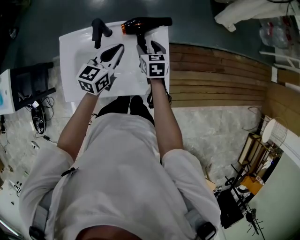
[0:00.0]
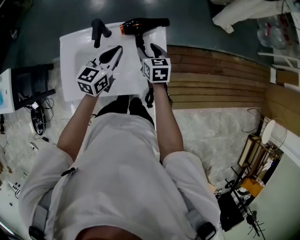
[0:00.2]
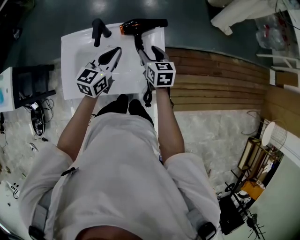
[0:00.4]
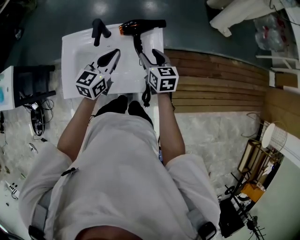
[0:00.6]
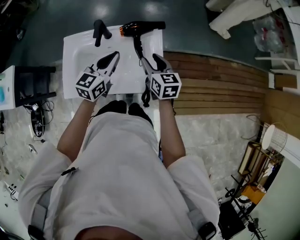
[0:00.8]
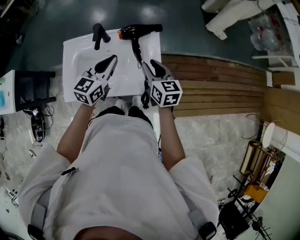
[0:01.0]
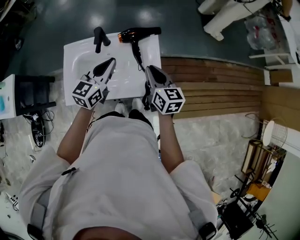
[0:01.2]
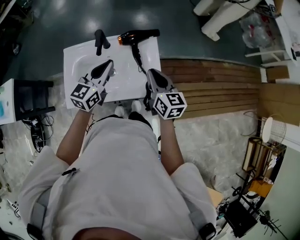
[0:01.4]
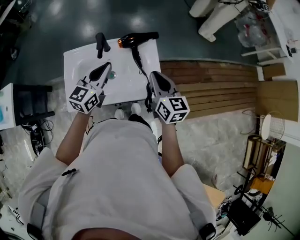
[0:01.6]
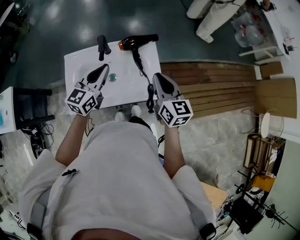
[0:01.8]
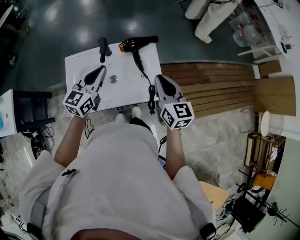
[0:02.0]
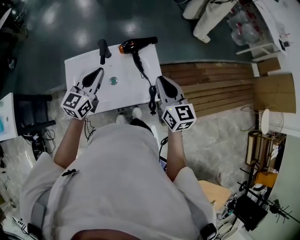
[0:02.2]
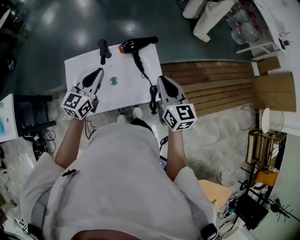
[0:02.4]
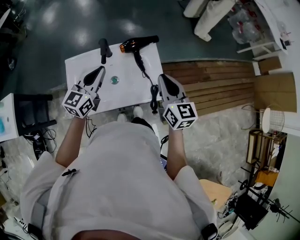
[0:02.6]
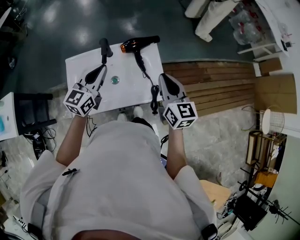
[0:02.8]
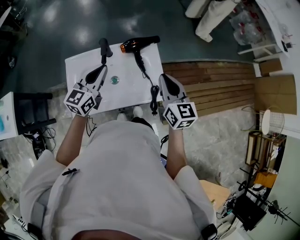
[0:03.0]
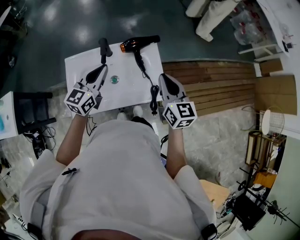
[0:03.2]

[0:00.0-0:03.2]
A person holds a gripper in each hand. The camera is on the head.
0:00.0 to 0:01.6: The left gripper travels upward and backward by approximately 10 cm, while the right gripper travels upward and backward by approximately 25 cm, swivels some 30 degrees, and closes up.
0:01.6 to 0:03.2: The grippers make only small movements.

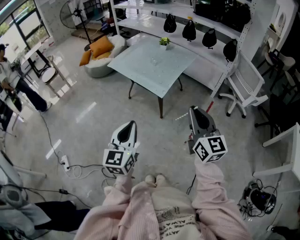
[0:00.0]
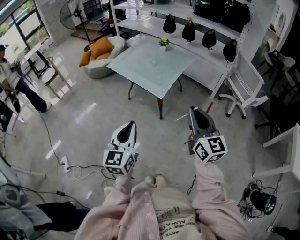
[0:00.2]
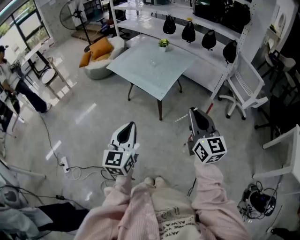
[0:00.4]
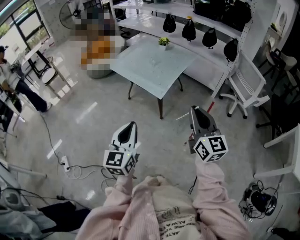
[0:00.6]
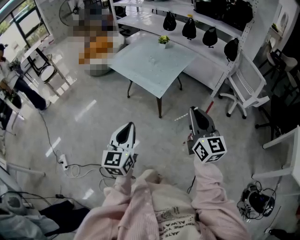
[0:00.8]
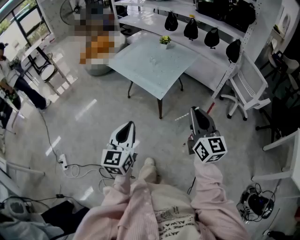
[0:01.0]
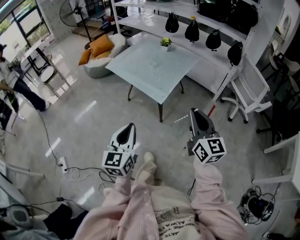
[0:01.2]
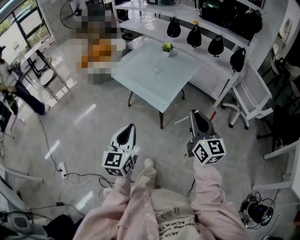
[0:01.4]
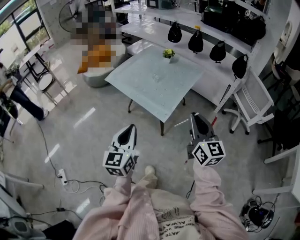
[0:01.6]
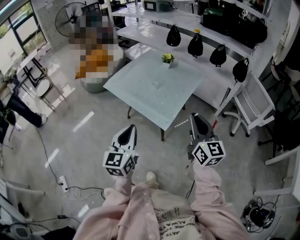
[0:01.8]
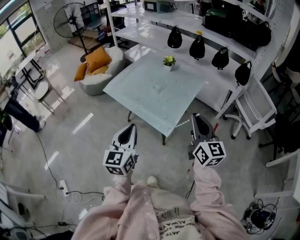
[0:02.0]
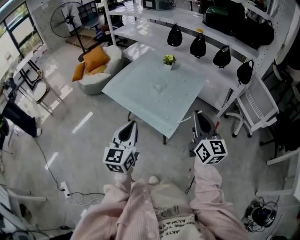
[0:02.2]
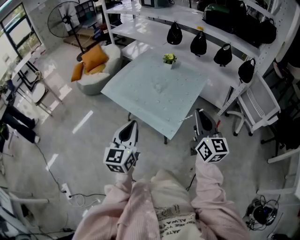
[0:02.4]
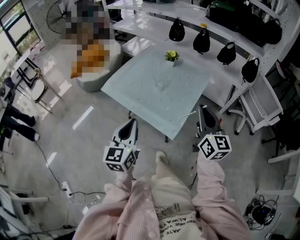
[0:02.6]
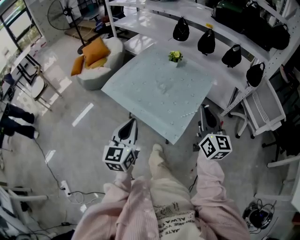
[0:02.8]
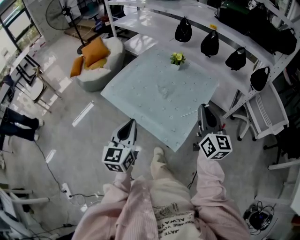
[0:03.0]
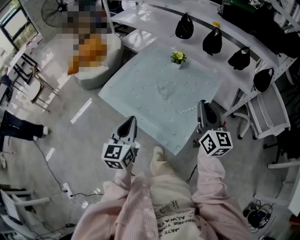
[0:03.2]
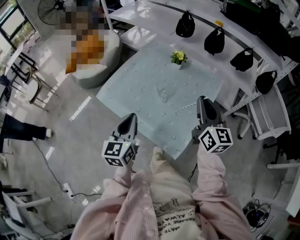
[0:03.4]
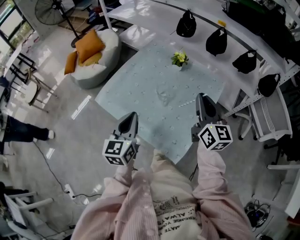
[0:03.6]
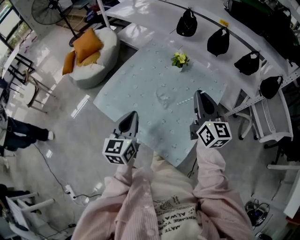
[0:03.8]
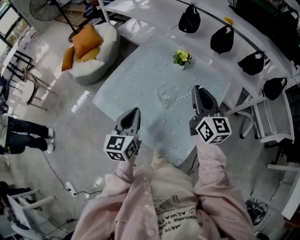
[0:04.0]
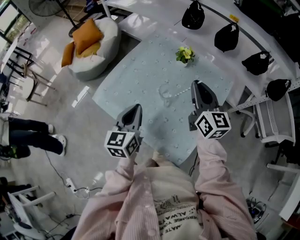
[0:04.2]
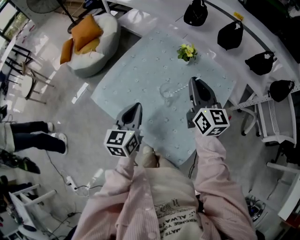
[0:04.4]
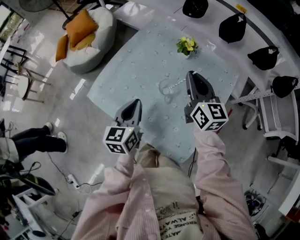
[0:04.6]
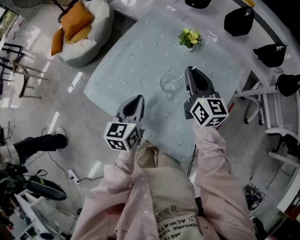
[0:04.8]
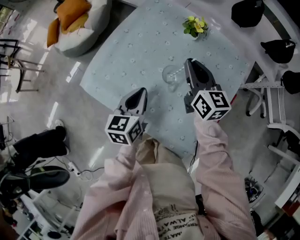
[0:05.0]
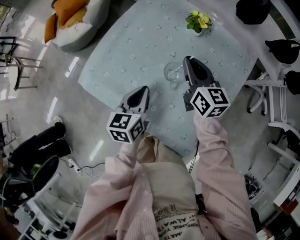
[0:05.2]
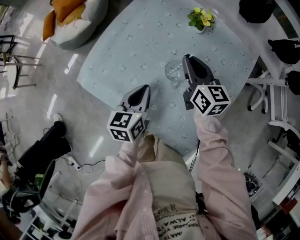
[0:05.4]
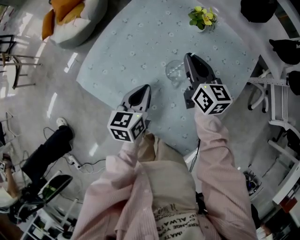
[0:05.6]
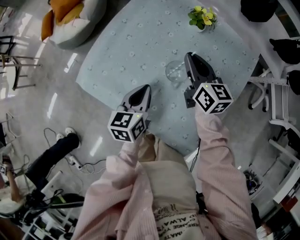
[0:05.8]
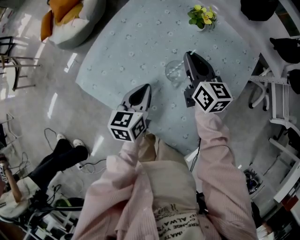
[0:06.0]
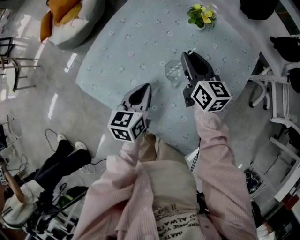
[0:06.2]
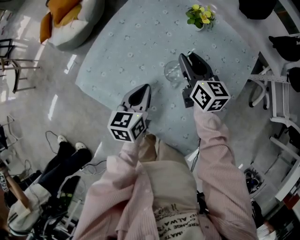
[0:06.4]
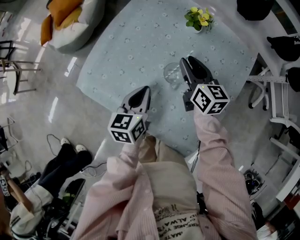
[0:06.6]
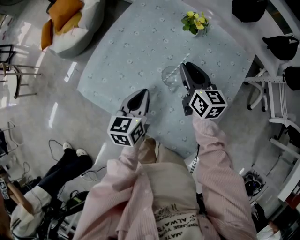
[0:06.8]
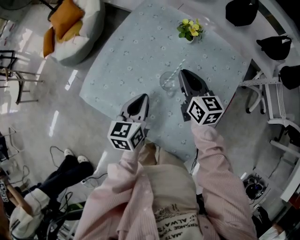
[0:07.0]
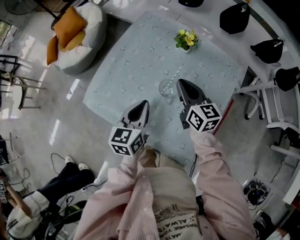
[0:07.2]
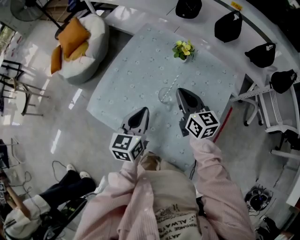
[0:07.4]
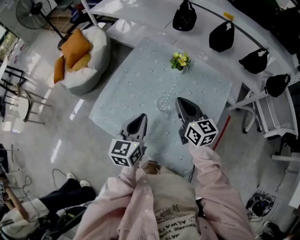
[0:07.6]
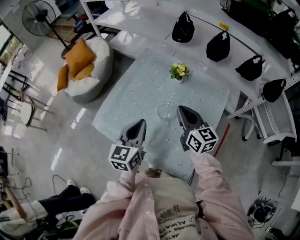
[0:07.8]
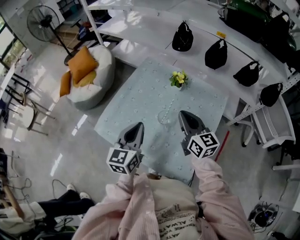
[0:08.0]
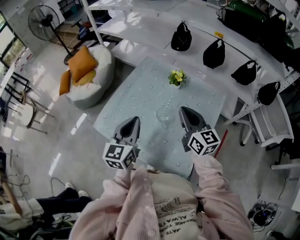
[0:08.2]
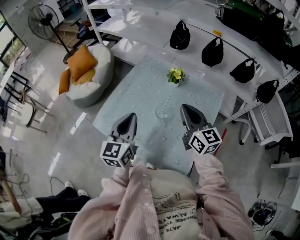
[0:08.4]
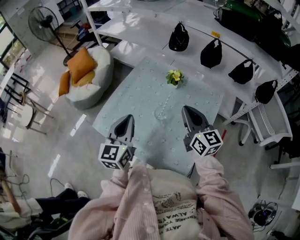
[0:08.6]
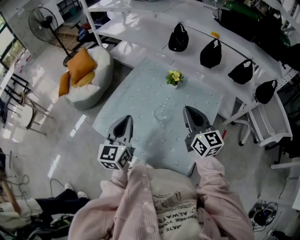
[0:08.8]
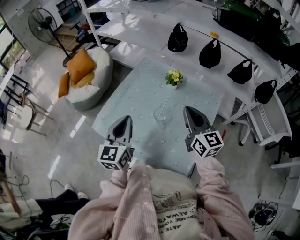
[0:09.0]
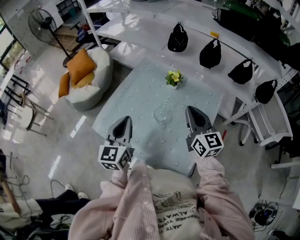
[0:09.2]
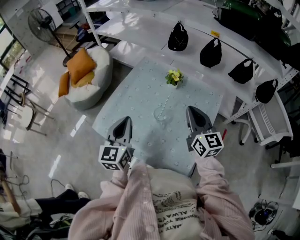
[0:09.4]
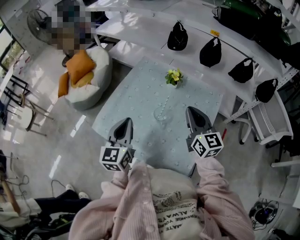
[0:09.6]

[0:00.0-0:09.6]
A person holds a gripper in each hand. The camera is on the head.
0:00.0 to 0:01.6: Both grippers move forward, approximately 20 cm.
0:01.6 to 0:03.2: Both grippers travel together forward, roughly 35 cm.
0:03.2 to 0:04.8: The grippers both shift forward and downward by roughly 30 cm.
0:04.8 to 0:06.4: The grippers both shift downward by about 10 cm. The right gripper opens its fingers.
0:06.4 to 0:08.0: The left gripper travels upward by roughly 20 cm, and turns by some 20 degrees. Meanwhile the right gripper travels upward and backward by roughly 20 cm, and closes up.
0:08.0 to 0:09.6: The right gripper moves some 5 cm.

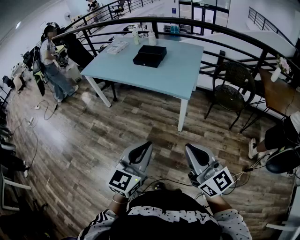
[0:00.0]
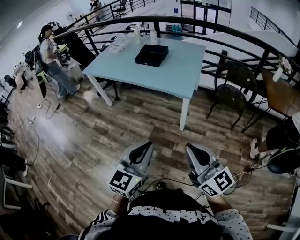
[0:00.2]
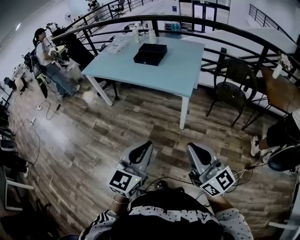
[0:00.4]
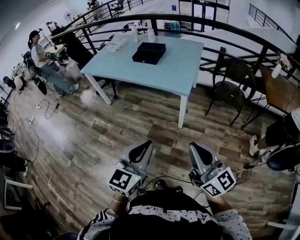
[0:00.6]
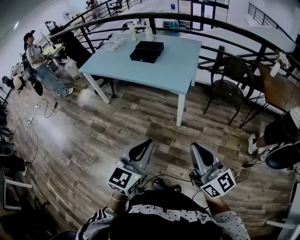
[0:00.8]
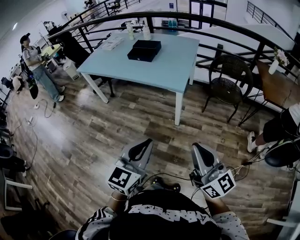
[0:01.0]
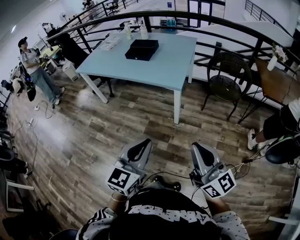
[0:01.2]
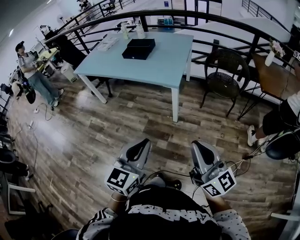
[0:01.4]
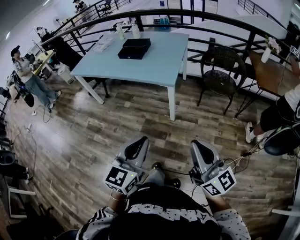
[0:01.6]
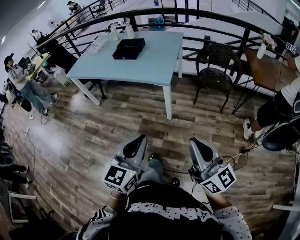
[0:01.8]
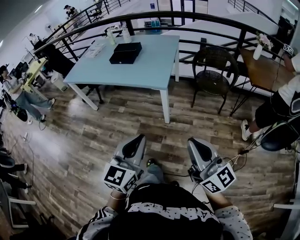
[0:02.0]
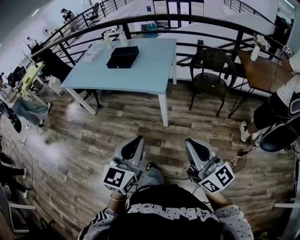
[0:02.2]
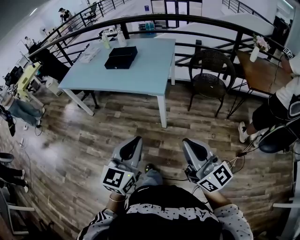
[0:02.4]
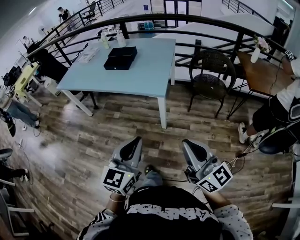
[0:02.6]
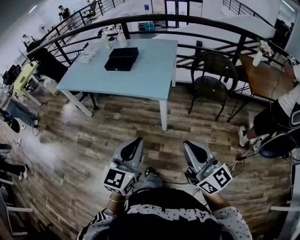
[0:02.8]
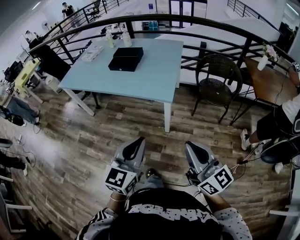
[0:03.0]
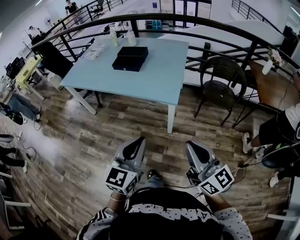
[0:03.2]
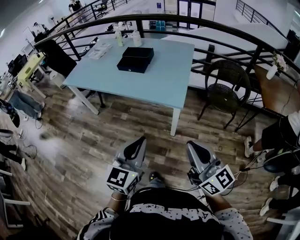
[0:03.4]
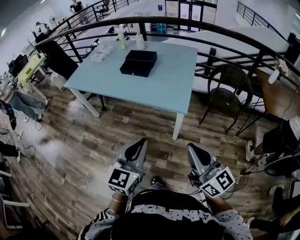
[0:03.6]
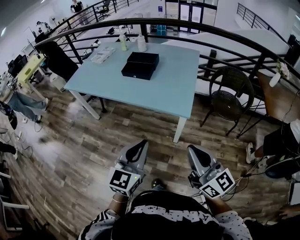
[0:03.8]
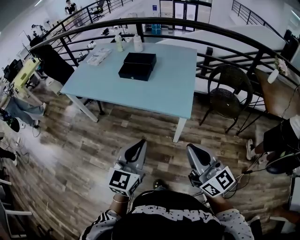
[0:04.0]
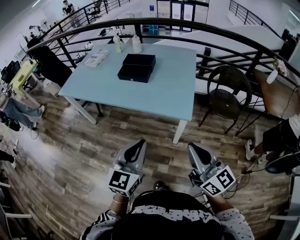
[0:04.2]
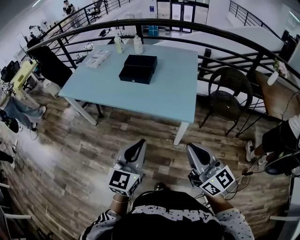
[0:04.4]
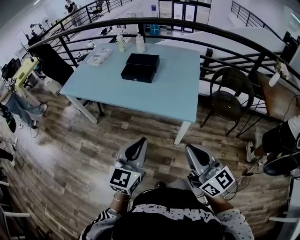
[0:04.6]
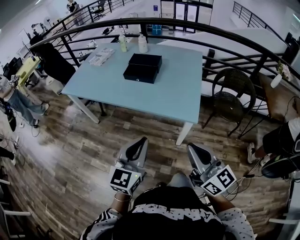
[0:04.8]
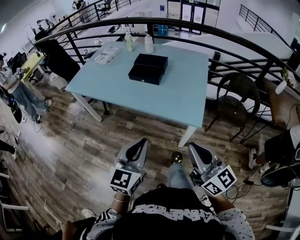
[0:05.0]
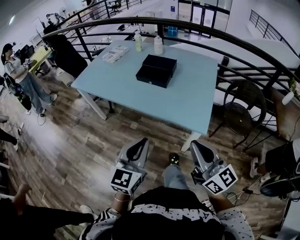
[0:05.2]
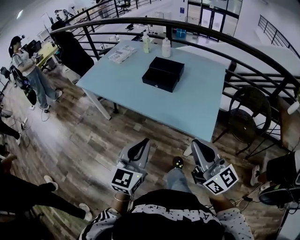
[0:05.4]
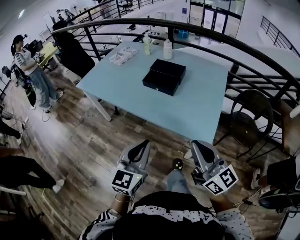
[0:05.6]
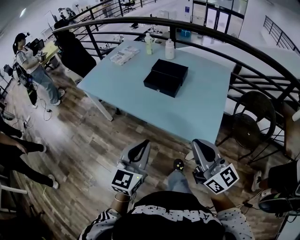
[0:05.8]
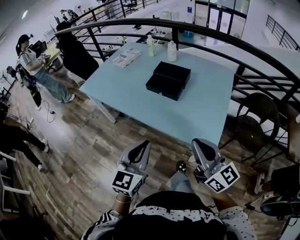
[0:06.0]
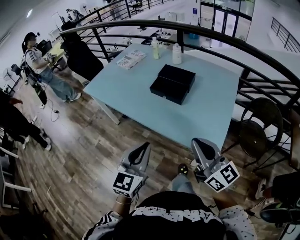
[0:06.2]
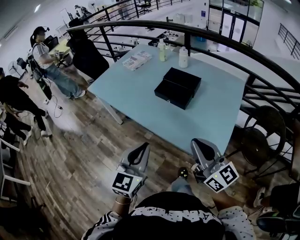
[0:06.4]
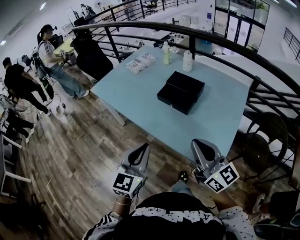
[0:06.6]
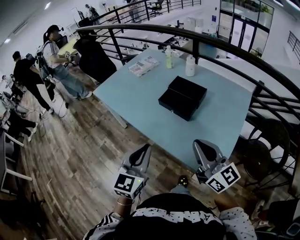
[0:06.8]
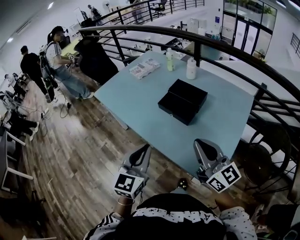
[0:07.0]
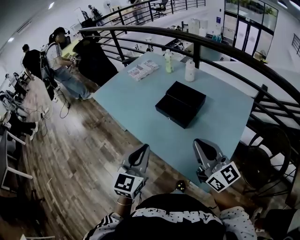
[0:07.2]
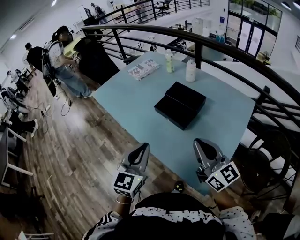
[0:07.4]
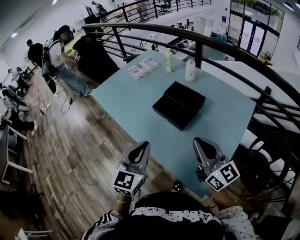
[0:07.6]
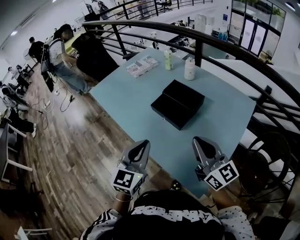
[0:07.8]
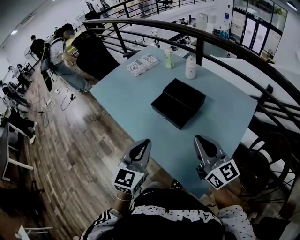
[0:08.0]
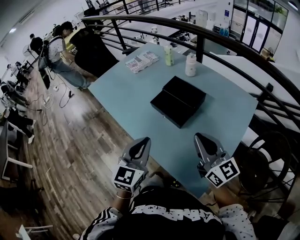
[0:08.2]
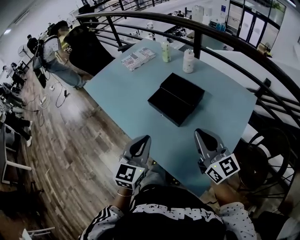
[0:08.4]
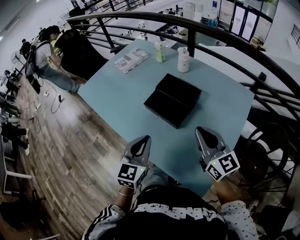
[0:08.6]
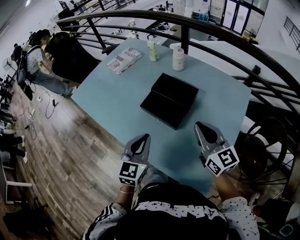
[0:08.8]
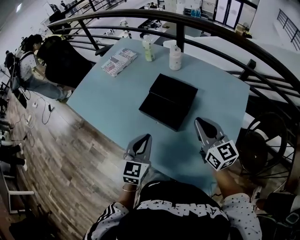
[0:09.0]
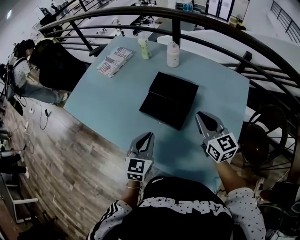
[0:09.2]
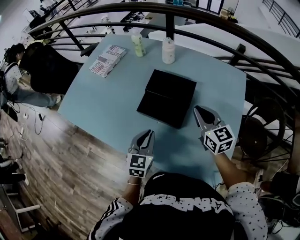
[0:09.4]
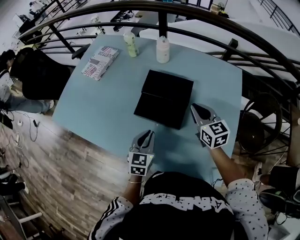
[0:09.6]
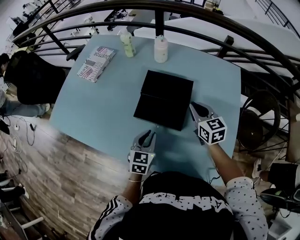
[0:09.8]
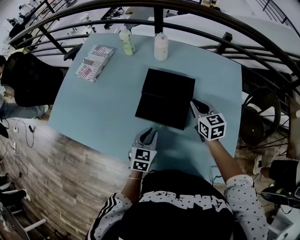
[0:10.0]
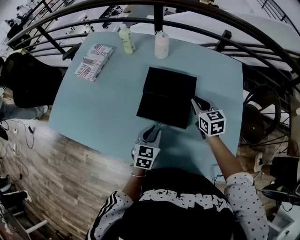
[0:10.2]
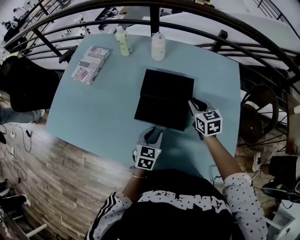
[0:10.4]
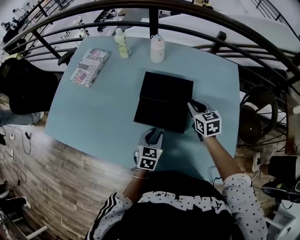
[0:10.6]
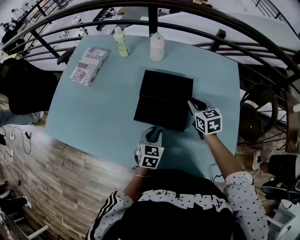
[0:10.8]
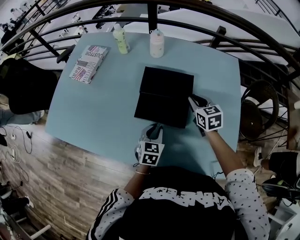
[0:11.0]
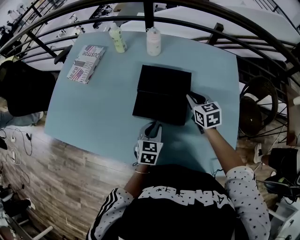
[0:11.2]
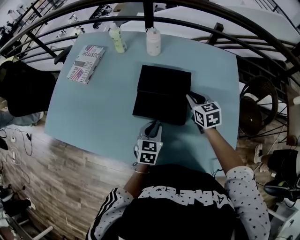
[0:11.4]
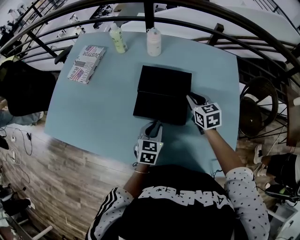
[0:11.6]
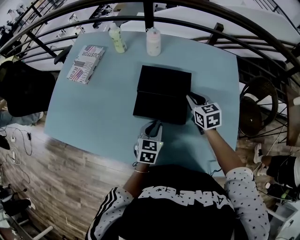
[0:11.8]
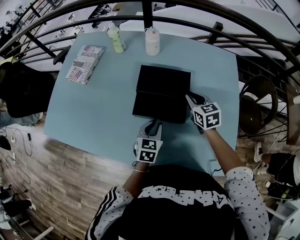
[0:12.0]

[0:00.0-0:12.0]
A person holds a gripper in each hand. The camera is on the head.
0:00.0 to 0:01.6: The right gripper goes some 15 cm to the right and backward. The left gripper goes roughly 10 cm to the right.
0:01.6 to 0:03.0: Both grippers travel together forward, some 15 cm.
0:03.0 to 0:04.4: Both grippers move forward and to the left, some 25 cm.
0:04.4 to 0:06.0: The grippers both shift forward by some 20 cm.
0:06.0 to 0:07.6: The grippers both shift forward and to the right by roughly 25 cm.
0:07.6 to 0:09.0: Both grippers move forward and downward, roughly 20 cm. The right gripper rotates about 20 degrees.
0:09.0 to 0:10.4: The two grippers go approximately 20 cm downward and forward. The right gripper turns by approximately 40 degrees, while the left gripper rotates approximately 30 degrees.
0:10.4 to 0:12.0: The grippers move only a little.
